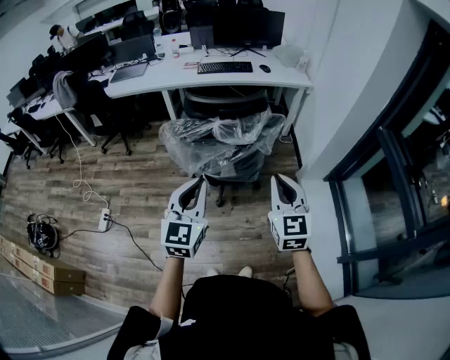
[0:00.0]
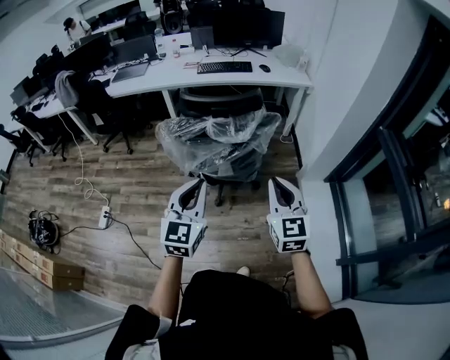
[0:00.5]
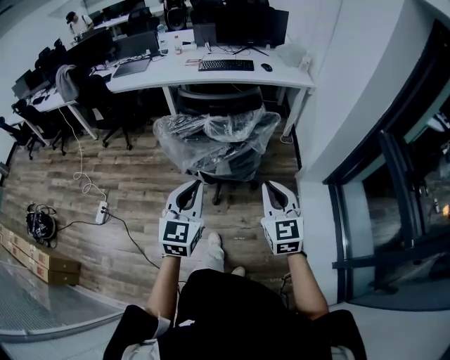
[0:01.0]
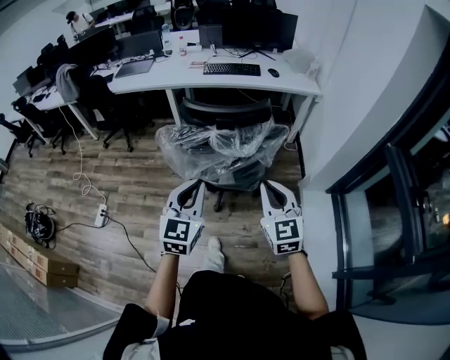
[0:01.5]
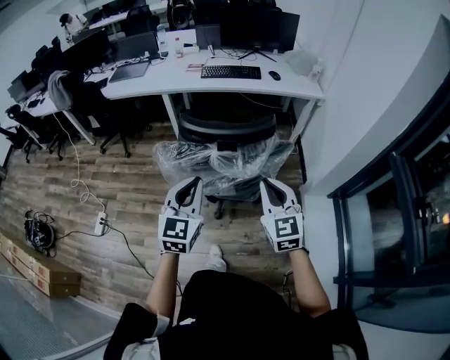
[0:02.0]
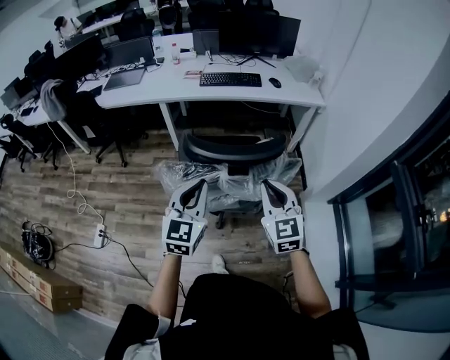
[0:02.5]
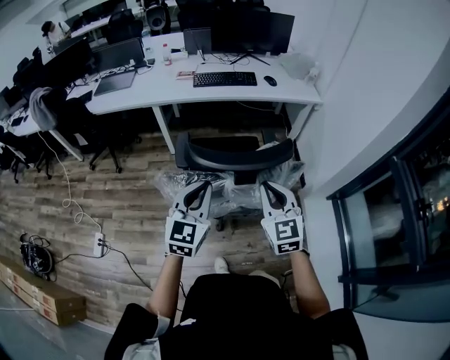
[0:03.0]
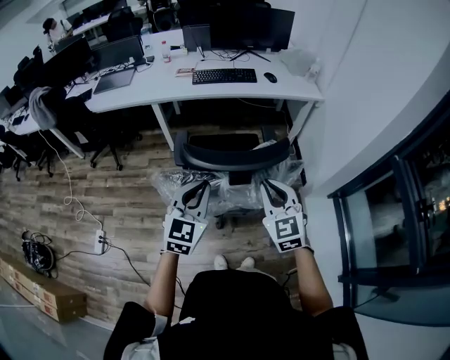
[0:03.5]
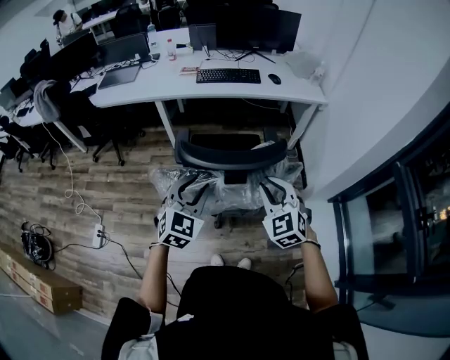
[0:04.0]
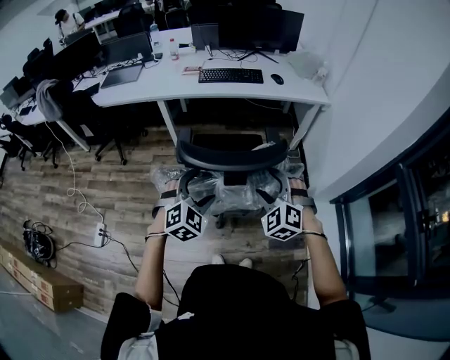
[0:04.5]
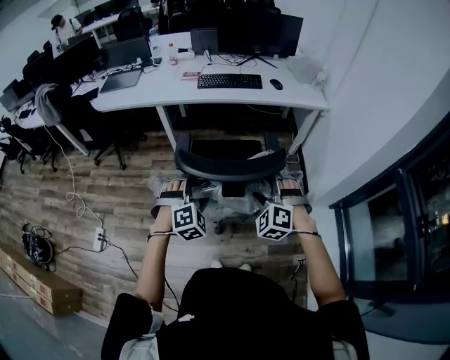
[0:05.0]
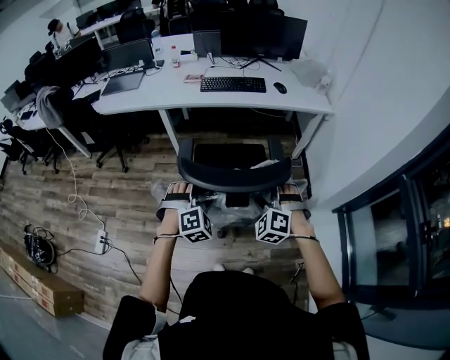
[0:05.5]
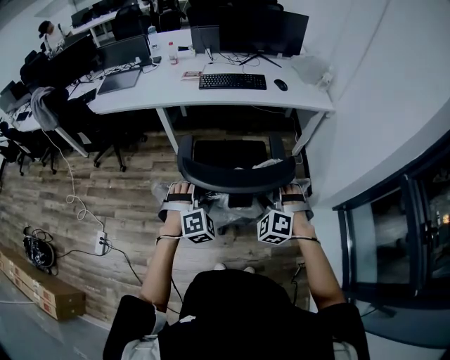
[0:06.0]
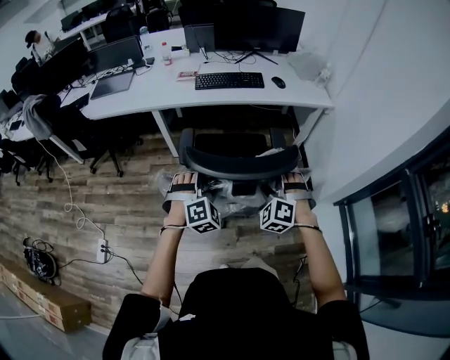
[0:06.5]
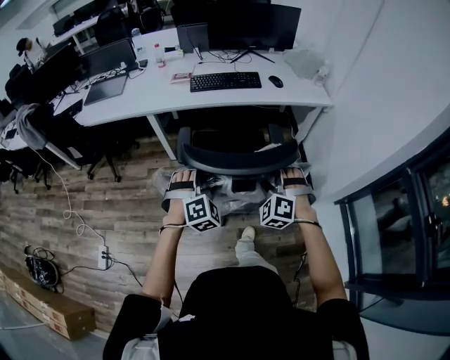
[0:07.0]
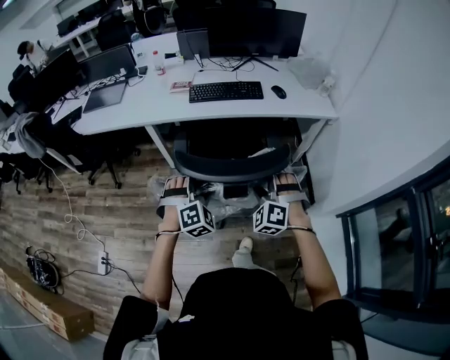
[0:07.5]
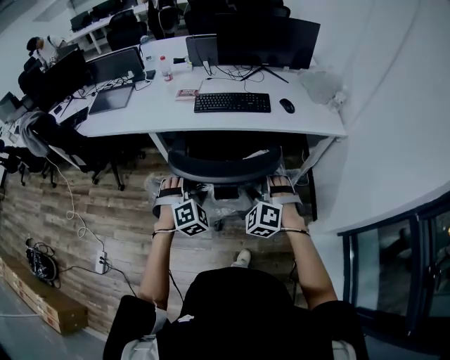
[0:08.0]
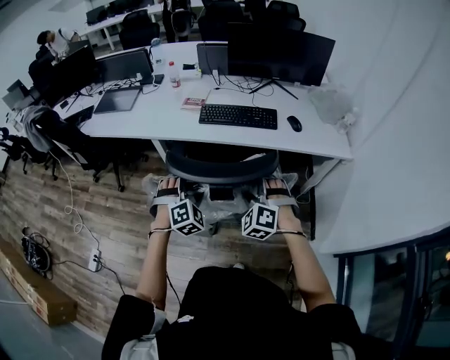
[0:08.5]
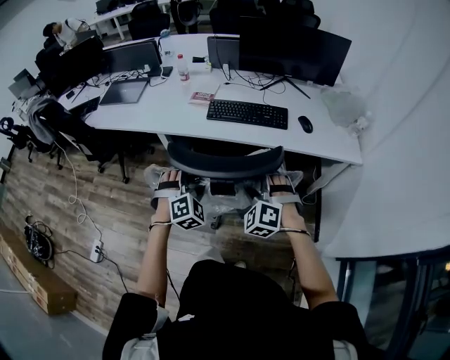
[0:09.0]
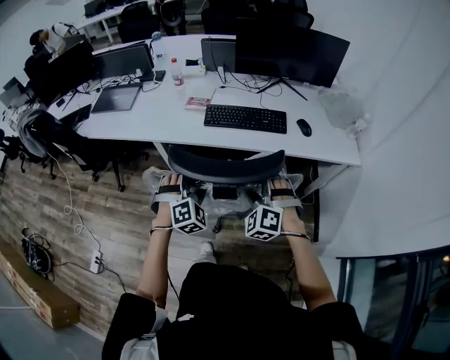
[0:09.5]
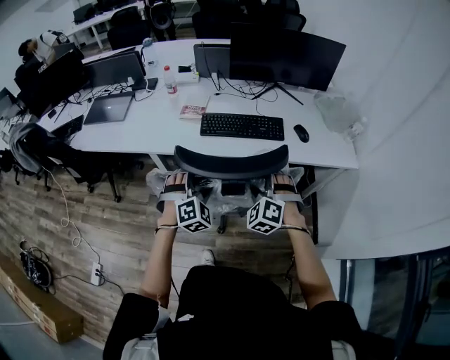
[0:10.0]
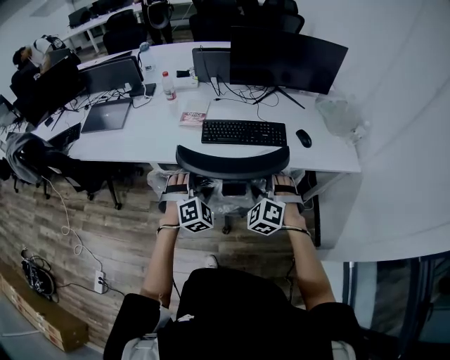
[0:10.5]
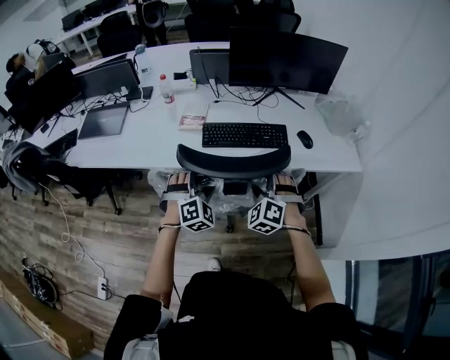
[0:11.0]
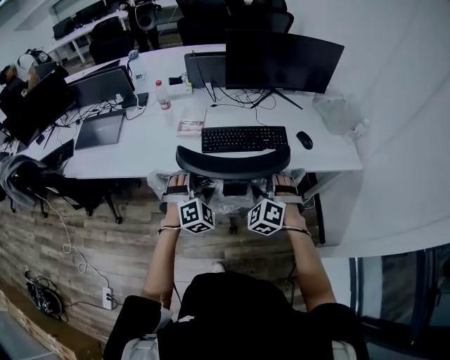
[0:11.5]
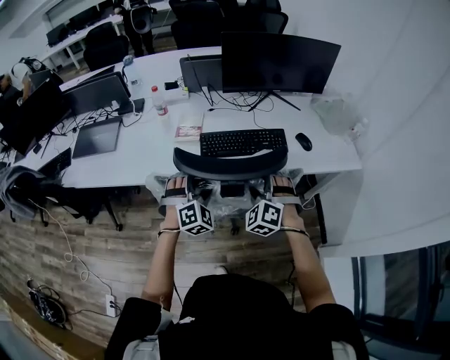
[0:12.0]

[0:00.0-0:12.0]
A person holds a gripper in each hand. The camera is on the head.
0:00.0 to 0:02.0: The grippers both shift forward by approximately 15 cm.
0:02.0 to 0:04.0: Both grippers move forward, some 10 cm. The left gripper turns by roughly 20 degrees. The right gripper swivels approximately 20 degrees.
0:04.0 to 0:06.0: The grippers both shift forward and downward by approximately 10 cm. The left gripper rotates about 40 degrees, and opens. Meanwhile the right gripper rotates roughly 30 degrees, and opens up.
0:06.0 to 0:08.0: The grippers both shift forward by about 25 cm.
0:08.0 to 0:10.0: Both grippers move forward, roughly 20 cm.
0:10.0 to 0:12.0: Both grippers move forward and to the left, about 10 cm.

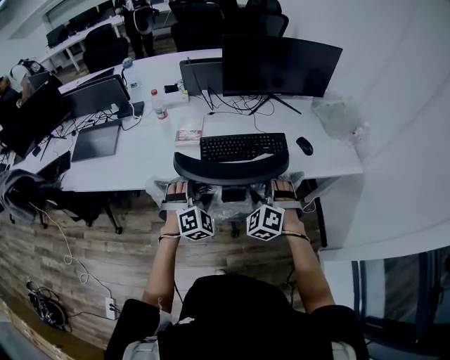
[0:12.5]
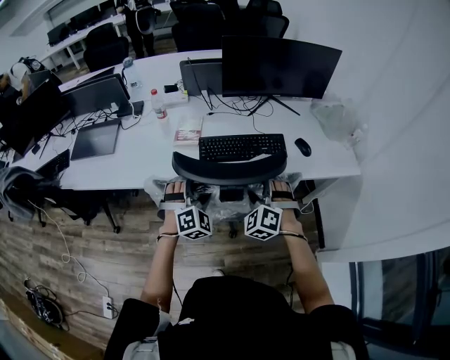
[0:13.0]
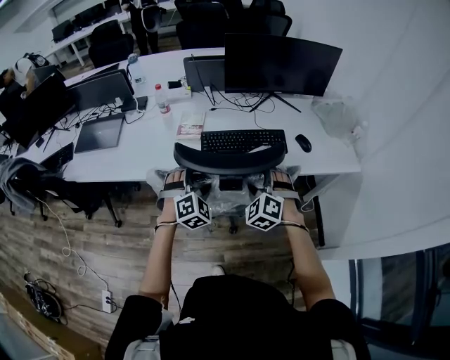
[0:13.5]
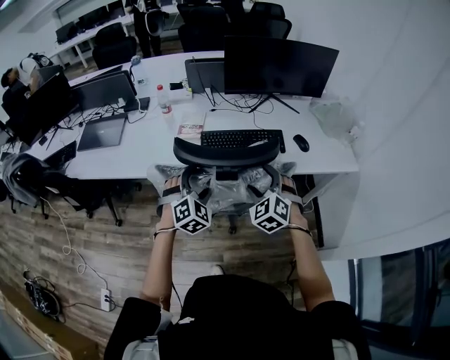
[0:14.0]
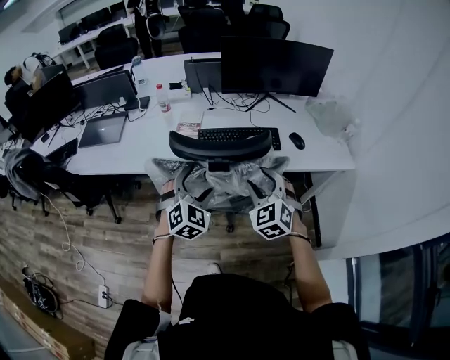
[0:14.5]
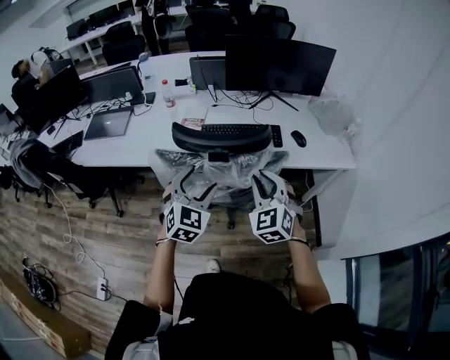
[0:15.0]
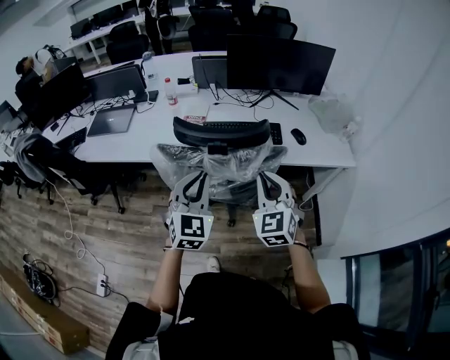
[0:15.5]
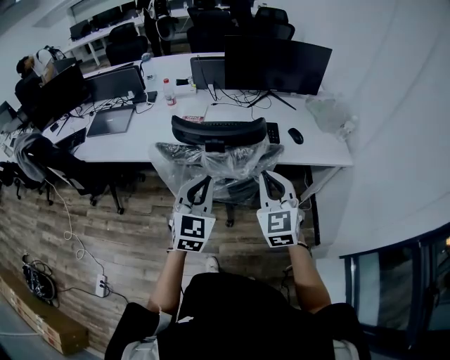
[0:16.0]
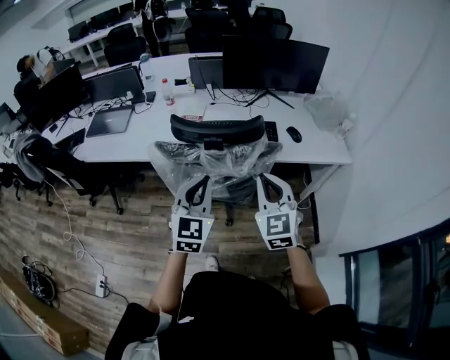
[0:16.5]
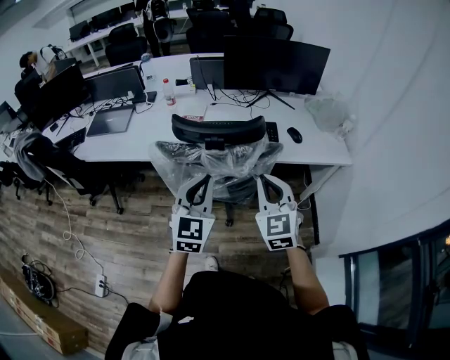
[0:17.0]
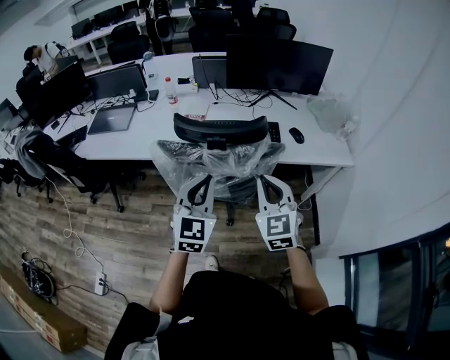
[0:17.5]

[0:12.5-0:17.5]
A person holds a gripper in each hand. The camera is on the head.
0:12.5 to 0:15.0: Both grippers travel together backward and upward, approximately 15 cm. The left gripper changes its angle by approximately 30 degrees; the right gripper swivels some 30 degrees, and closes its fingers.
0:15.0 to 0:17.5: The two grippers go about 5 cm backward. The left gripper closes its fingers.

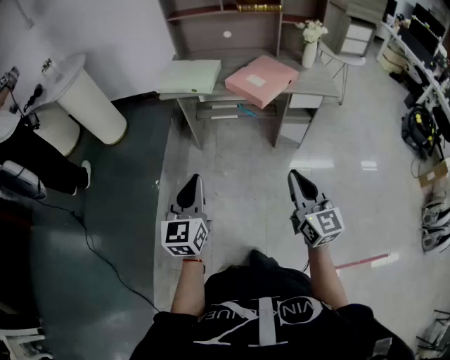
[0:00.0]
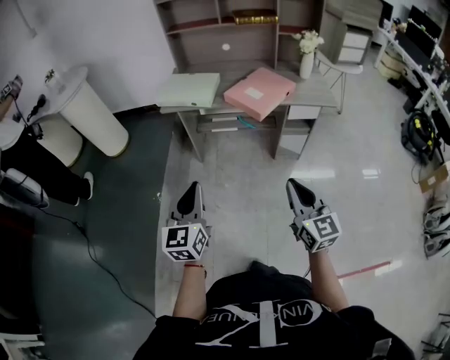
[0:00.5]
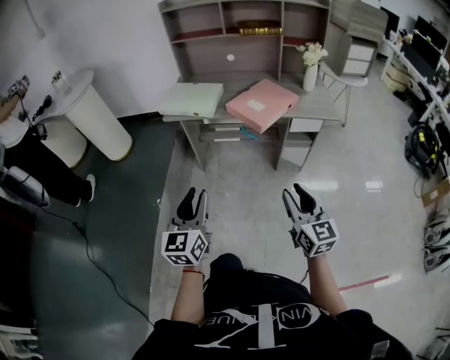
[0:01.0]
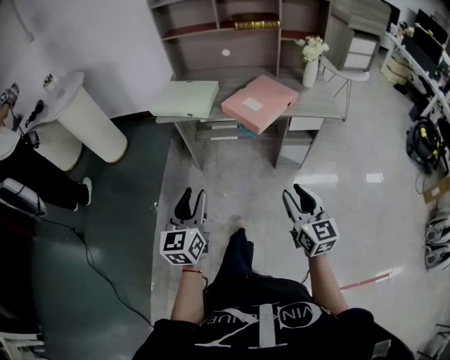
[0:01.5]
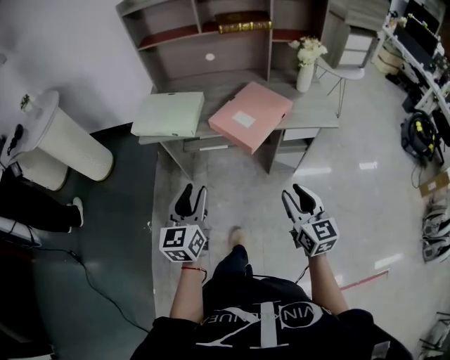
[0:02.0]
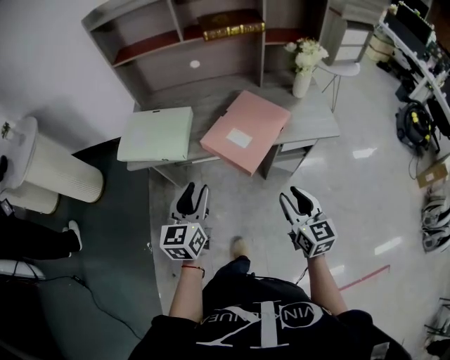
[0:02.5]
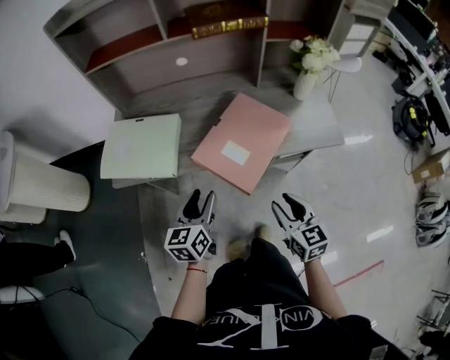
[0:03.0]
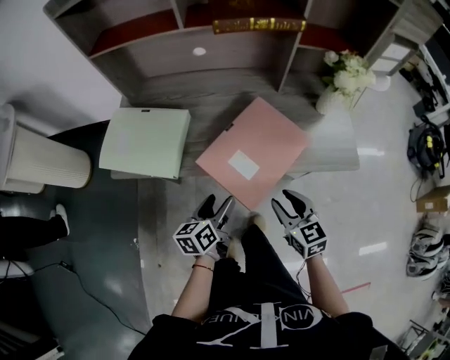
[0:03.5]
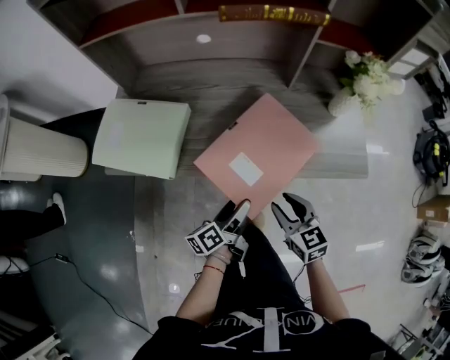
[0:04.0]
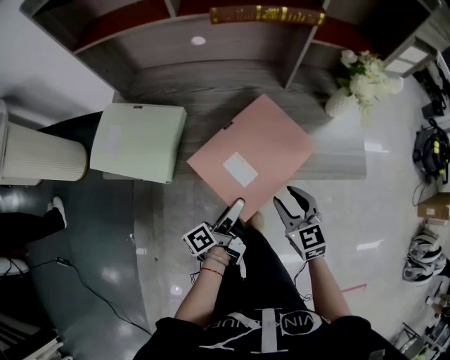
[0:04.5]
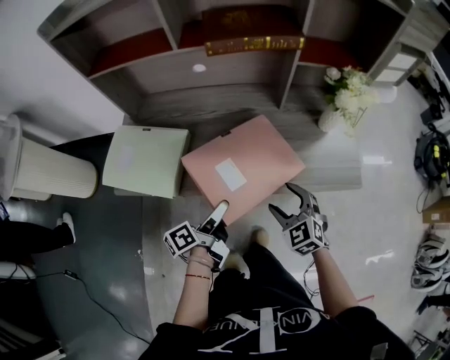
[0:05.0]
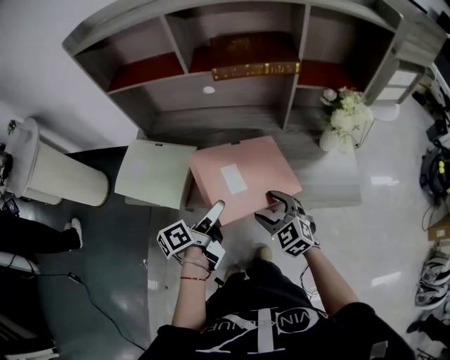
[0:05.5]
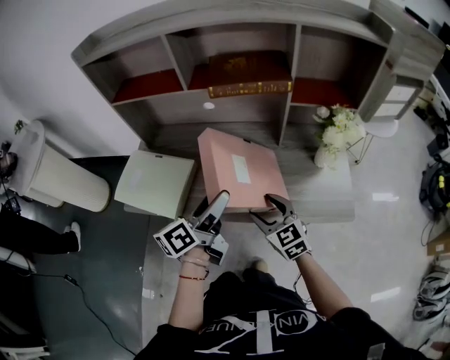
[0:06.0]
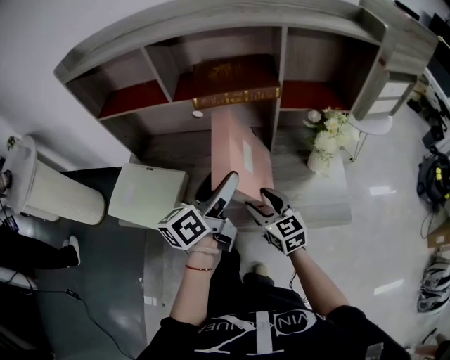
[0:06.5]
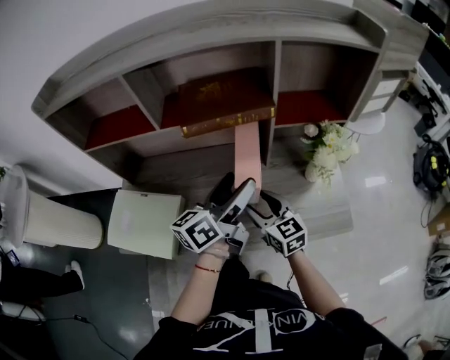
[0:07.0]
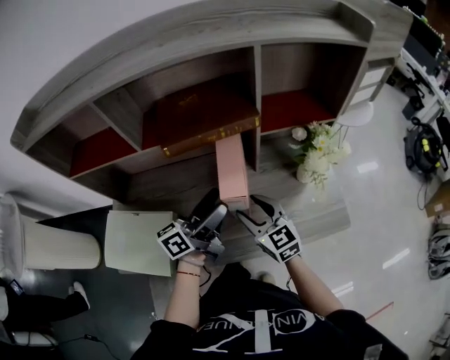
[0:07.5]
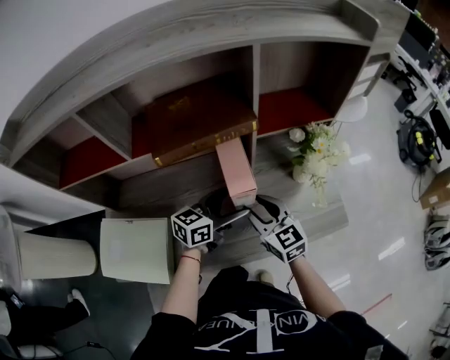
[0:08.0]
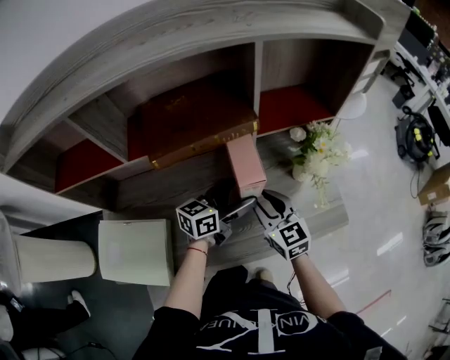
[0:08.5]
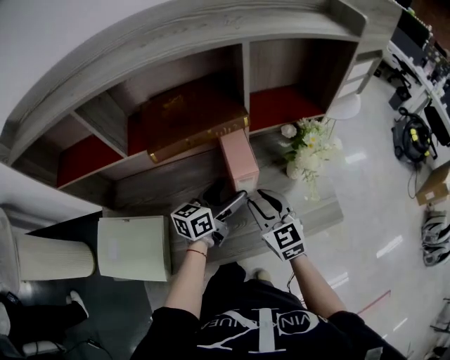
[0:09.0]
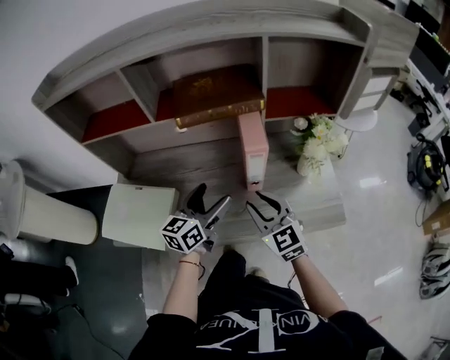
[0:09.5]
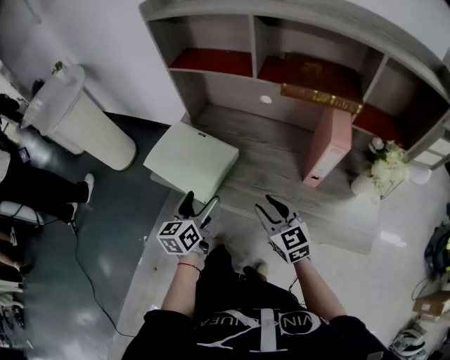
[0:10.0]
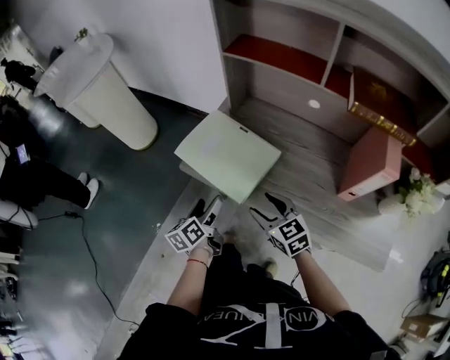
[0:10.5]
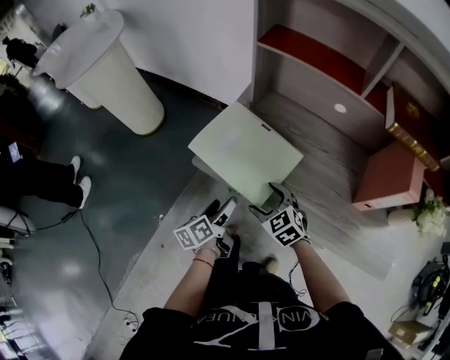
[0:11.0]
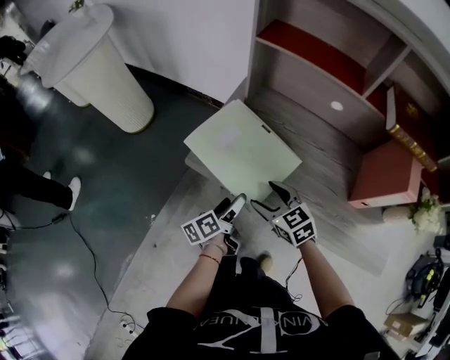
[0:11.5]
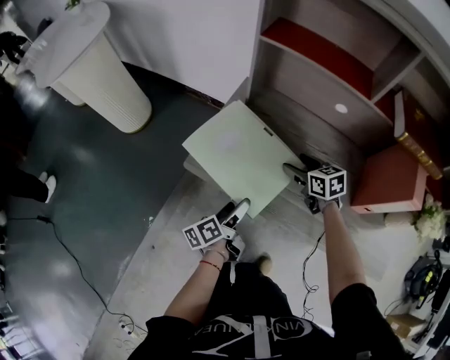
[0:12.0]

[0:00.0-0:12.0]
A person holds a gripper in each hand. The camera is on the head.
0:00.0 to 0:02.0: The right gripper goes some 20 cm forward and to the right, and opens its fingers, while the left gripper goes approximately 20 cm forward.
0:02.0 to 0:04.0: The left gripper goes approximately 35 cm forward, downward and to the right, rotates around the line of its fingers by approximately 60 degrees, counterclockwise from behind, and opens its fingers. Meanwhile the right gripper moves forward and downward, about 30 cm, and changes its angle by roughly 30 degrees.
0:04.0 to 0:06.0: The right gripper travels forward and upward by about 15 cm. Meanwhile the left gripper shifts some 25 cm upward and forward, and changes its angle by some 20 degrees.
0:06.0 to 0:08.0: The right gripper shifts by about 15 cm, and turns by roughly 20 degrees. The left gripper shifts by some 20 cm, and rotates roughly 50 degrees.
0:08.0 to 0:10.0: The right gripper ends up about 20 cm from where it was, and changes its angle by roughly 30 degrees, while the left gripper changes place by approximately 35 cm, and turns by roughly 70 degrees.
0:10.0 to 0:12.0: The right gripper shifts about 25 cm forward and downward, swivels approximately 30 degrees, and opens; the left gripper moves downward, to the left and forward, some 15 cm, and rotates around the line of its fingers by approximately 50 degrees, counterclockwise from behind.
